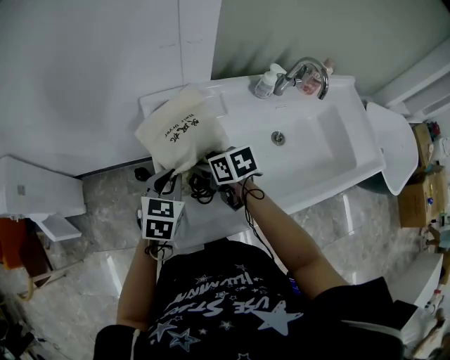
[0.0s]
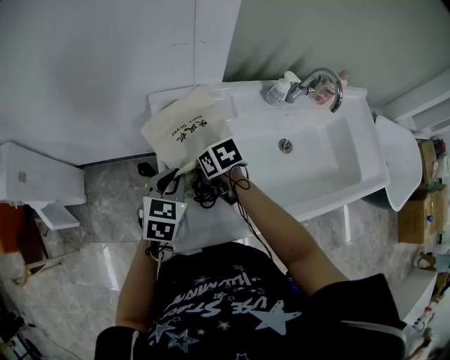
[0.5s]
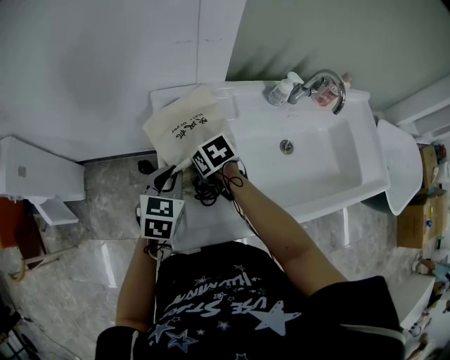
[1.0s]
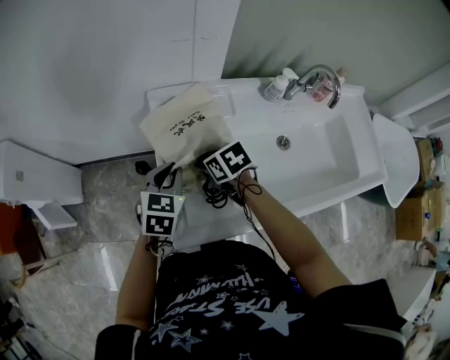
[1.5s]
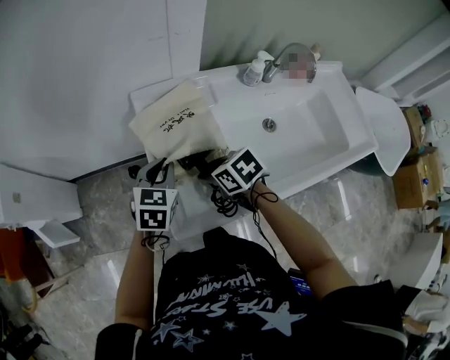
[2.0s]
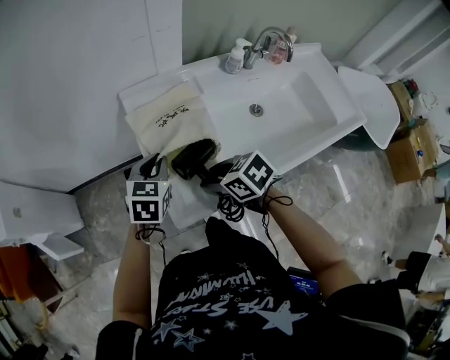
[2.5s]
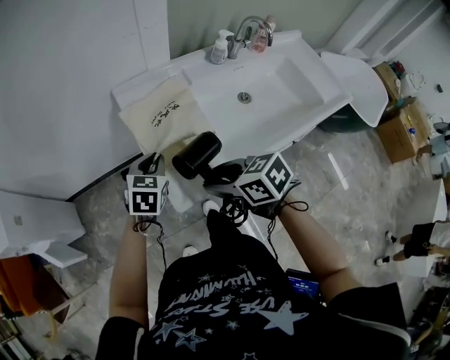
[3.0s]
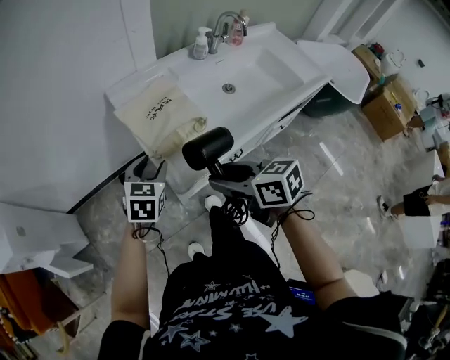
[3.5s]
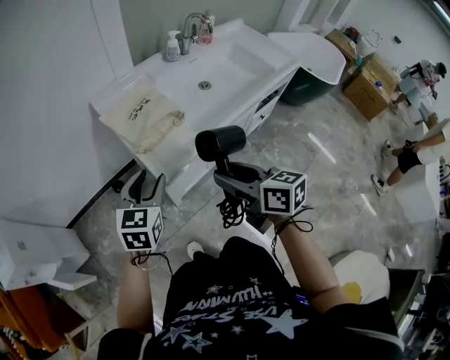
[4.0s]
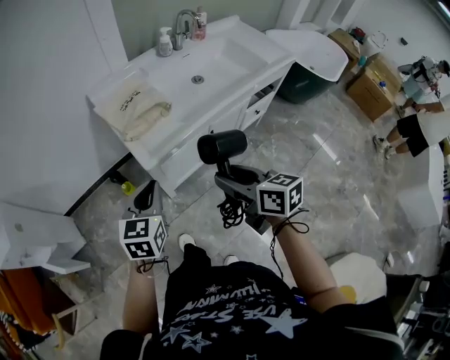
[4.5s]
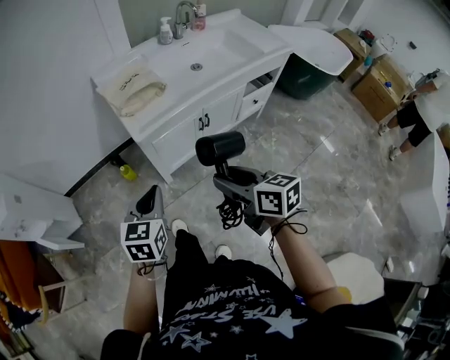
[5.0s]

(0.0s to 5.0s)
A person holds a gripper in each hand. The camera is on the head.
0.0s - 2.5s: The right gripper shifts about 15 cm backward.
2.5s - 5.0s: Both grippers are carried about 40 cm. The right gripper changes its angle by some 50 degrees; the left gripper opens, then closes again.

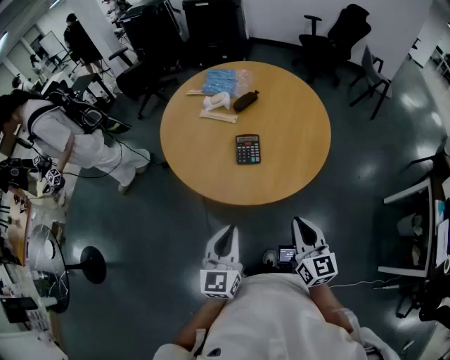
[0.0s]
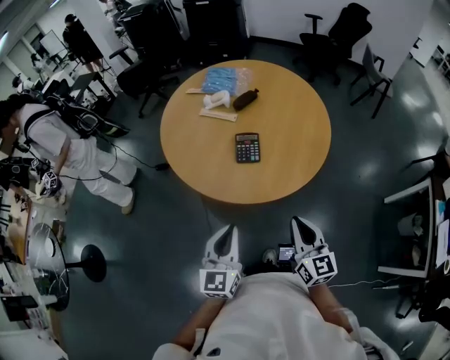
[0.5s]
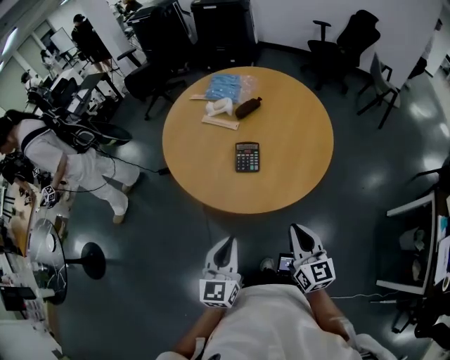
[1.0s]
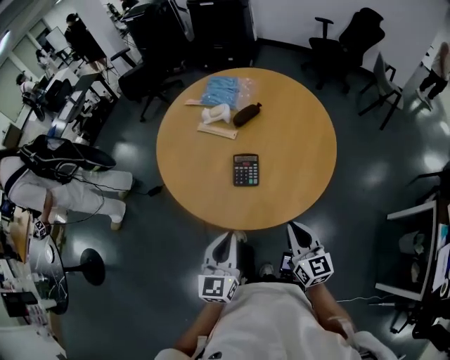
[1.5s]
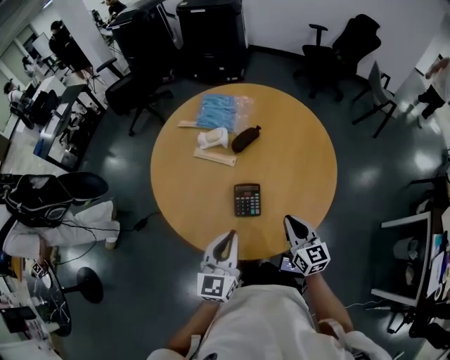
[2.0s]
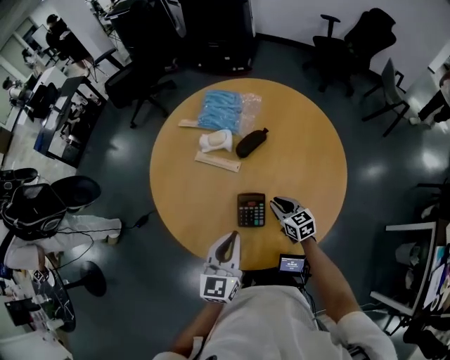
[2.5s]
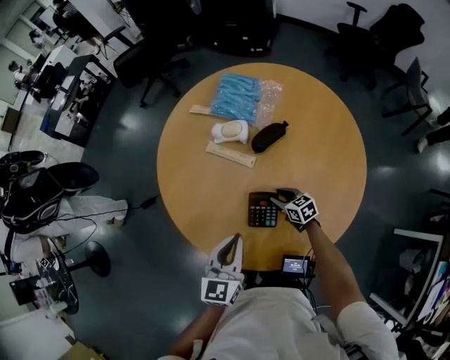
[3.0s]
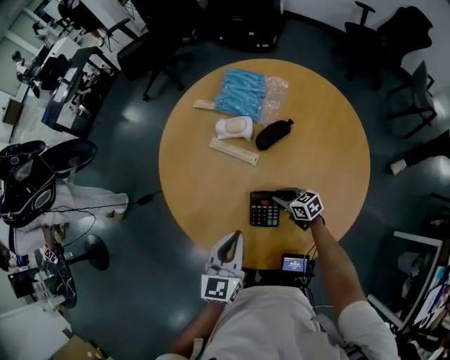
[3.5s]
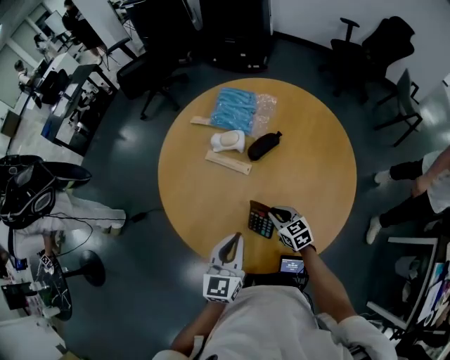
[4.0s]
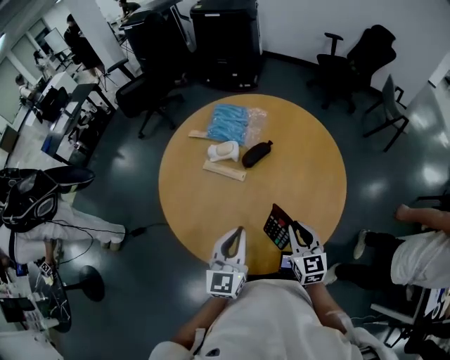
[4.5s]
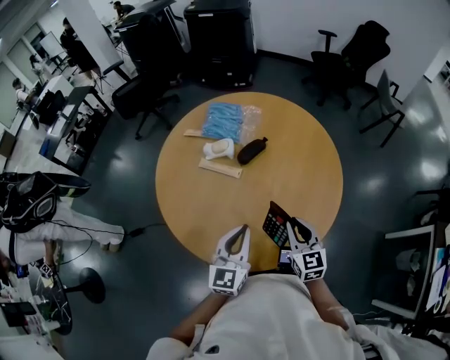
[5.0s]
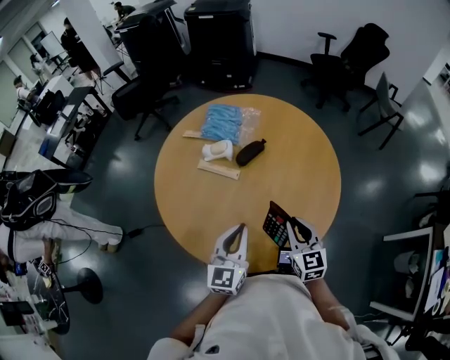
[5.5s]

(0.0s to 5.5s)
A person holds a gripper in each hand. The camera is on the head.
0.0s - 2.0s: Both grippers travel together forward, approximately 25 cm.
2.0s - 3.5s: The left gripper moves roughly 10 cm, while the right gripper goes some 25 cm downward, rotates about 50 degrees, and opens up.
3.5s - 5.5s: The left gripper shifts approximately 5 cm upward. Meanwhile the right gripper travels upward by roughly 25 cm, and changes its angle by roughly 50 degrees.

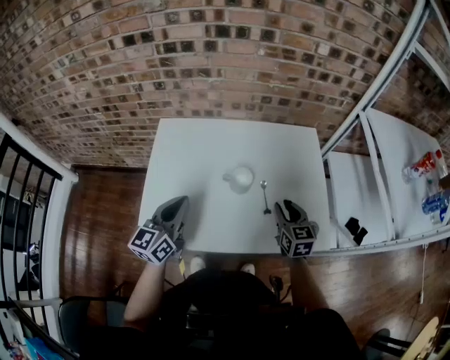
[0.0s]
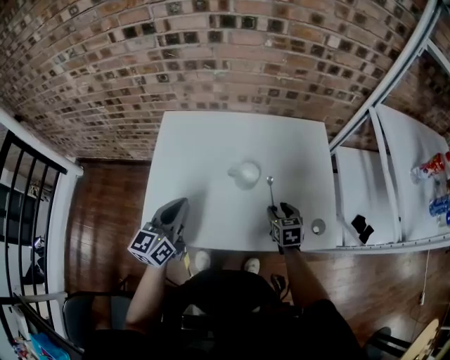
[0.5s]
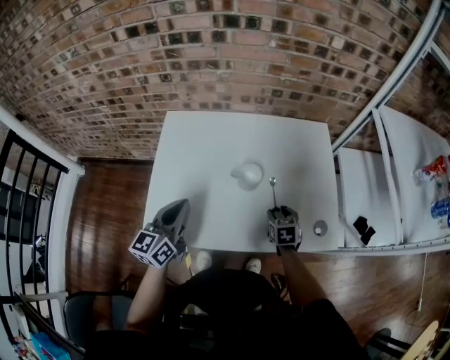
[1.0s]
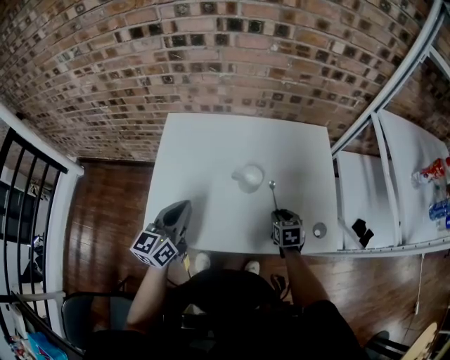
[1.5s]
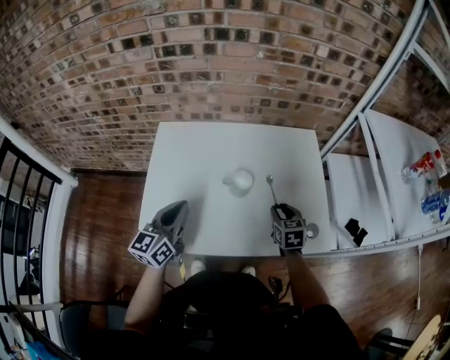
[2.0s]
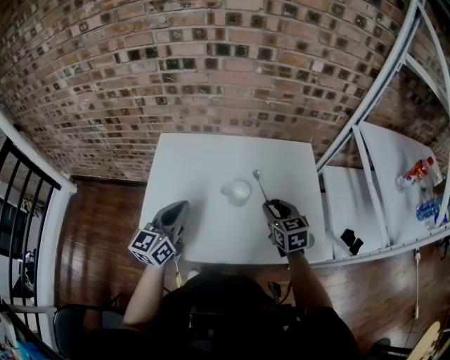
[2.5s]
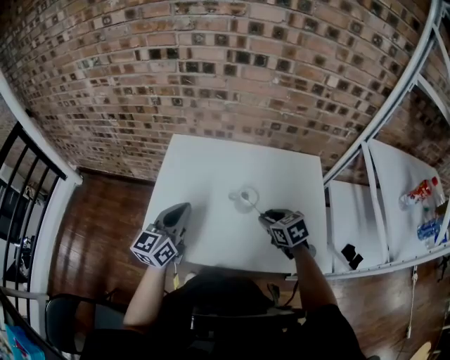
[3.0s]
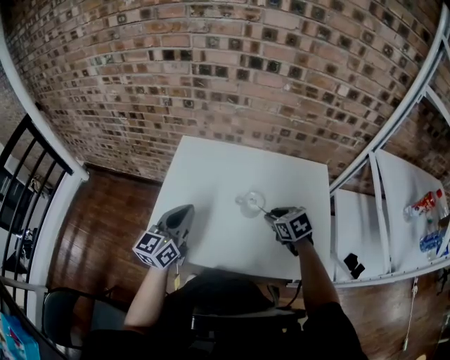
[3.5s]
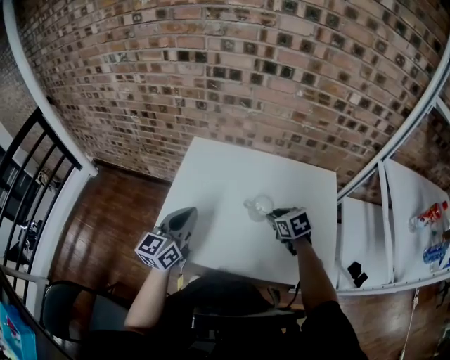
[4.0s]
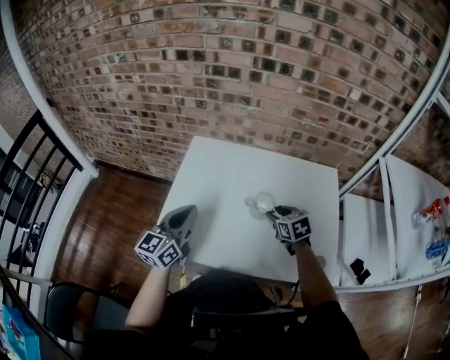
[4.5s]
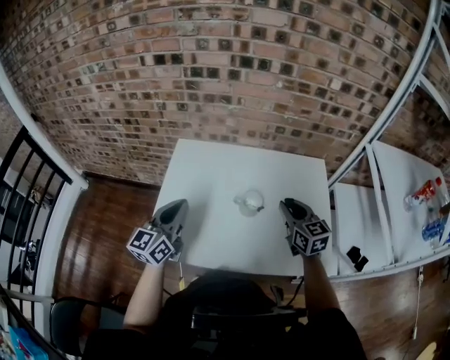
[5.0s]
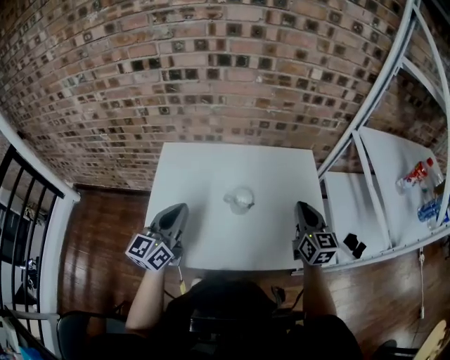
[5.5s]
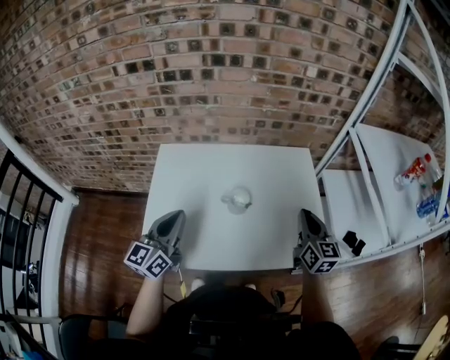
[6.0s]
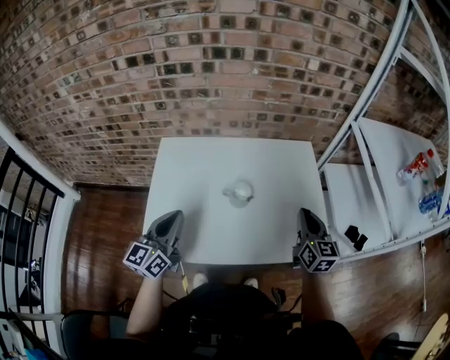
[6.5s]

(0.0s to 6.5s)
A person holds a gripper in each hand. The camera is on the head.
0.0s - 2.0s: The right gripper heads downward, covering approximately 5 cm.
2.0s - 4.5s: The right gripper travels to the left and forward by some 10 cm, and changes its angle by approximately 30 degrees, while the left gripper moves some 5 cm.
4.5s - 6.5s: The right gripper goes roughly 20 cm to the right, upward and backward, tilts its fingers approximately 40 degrees upward, and closes.

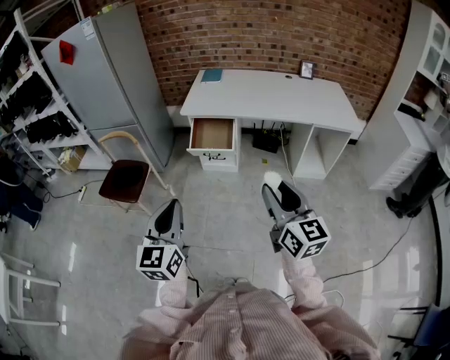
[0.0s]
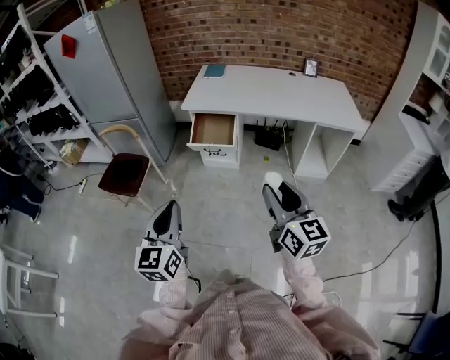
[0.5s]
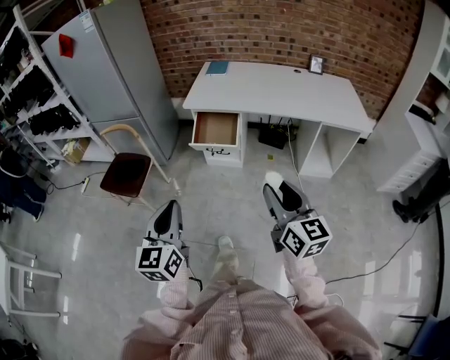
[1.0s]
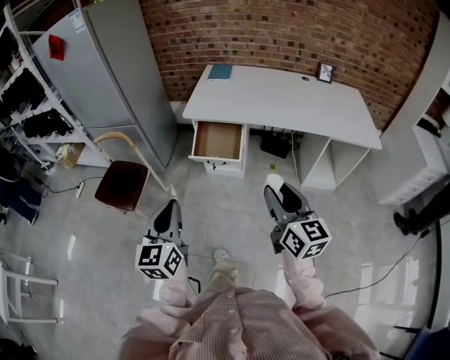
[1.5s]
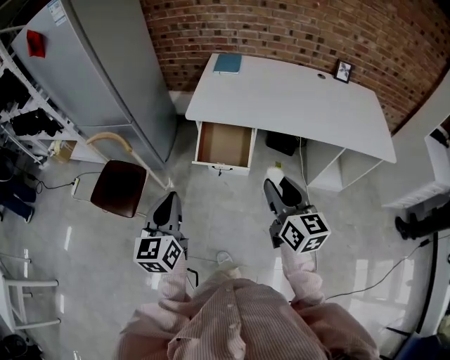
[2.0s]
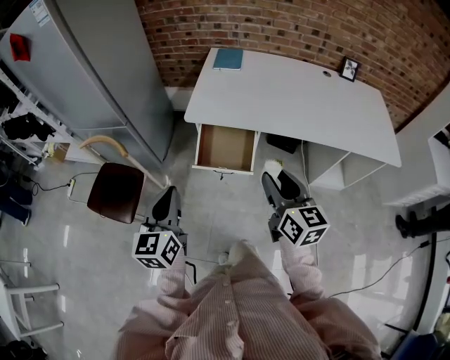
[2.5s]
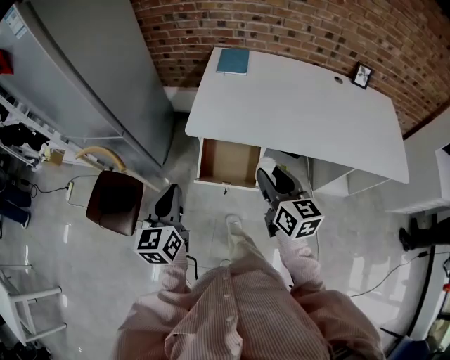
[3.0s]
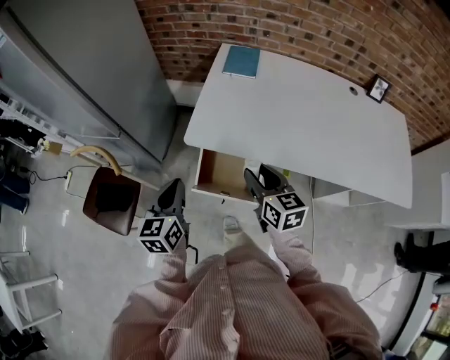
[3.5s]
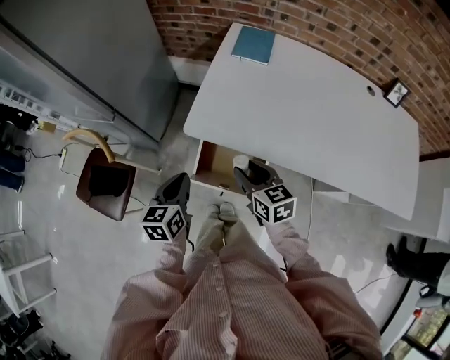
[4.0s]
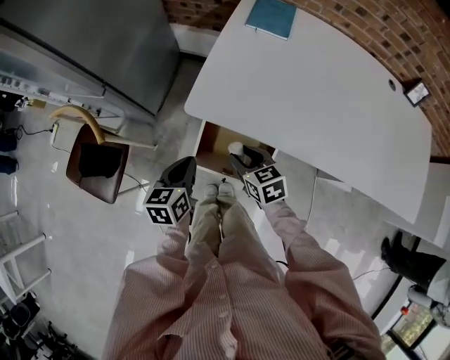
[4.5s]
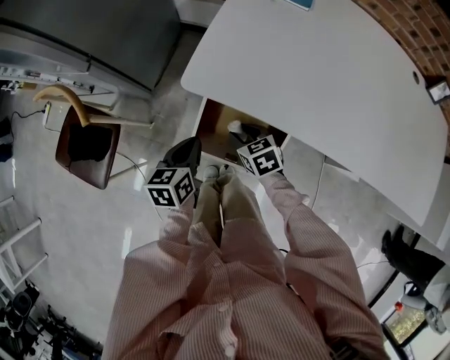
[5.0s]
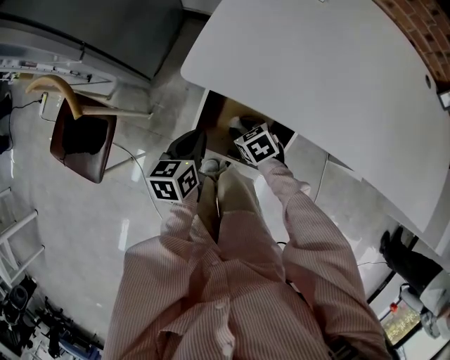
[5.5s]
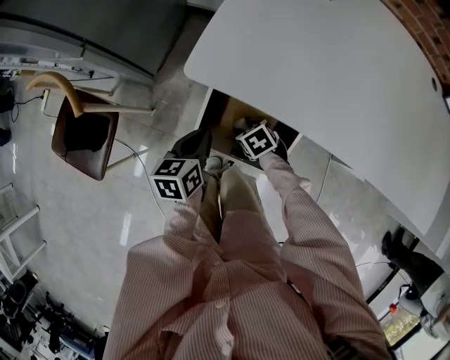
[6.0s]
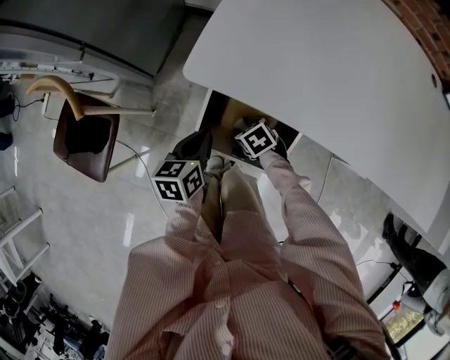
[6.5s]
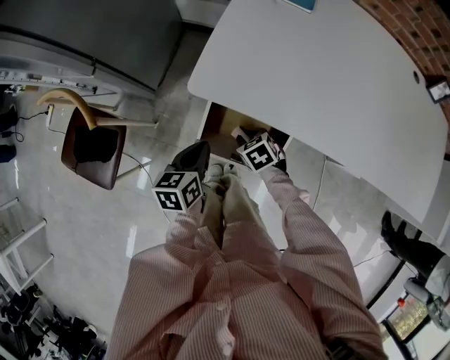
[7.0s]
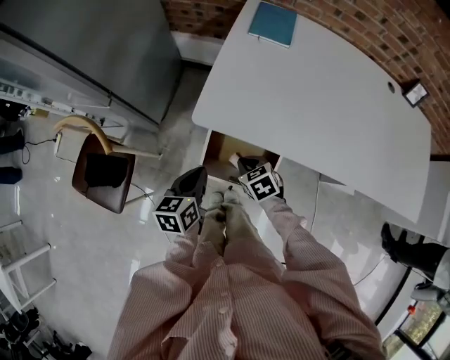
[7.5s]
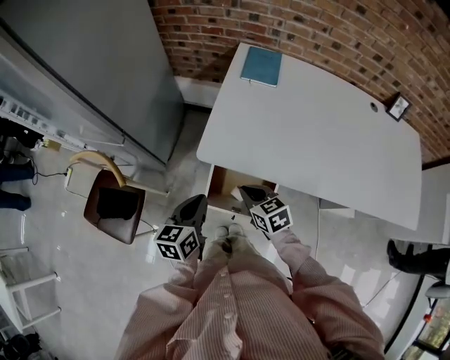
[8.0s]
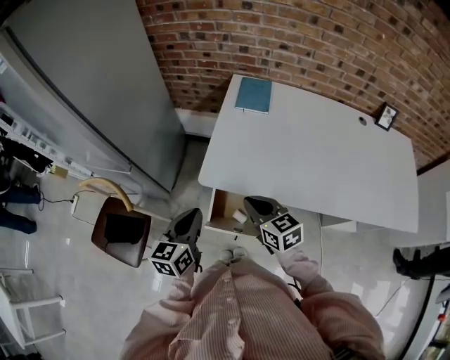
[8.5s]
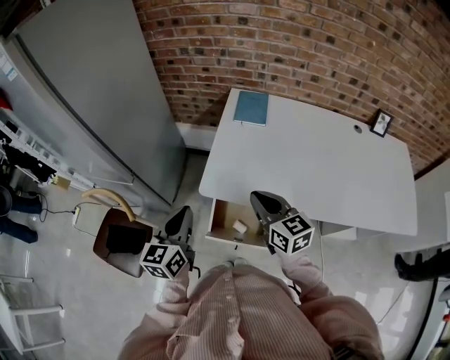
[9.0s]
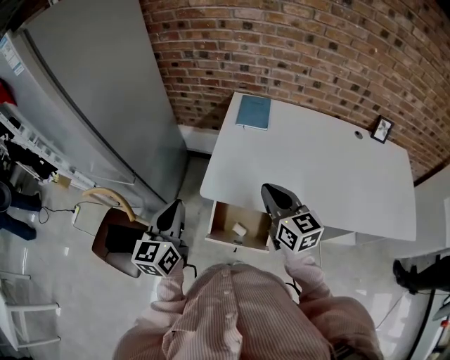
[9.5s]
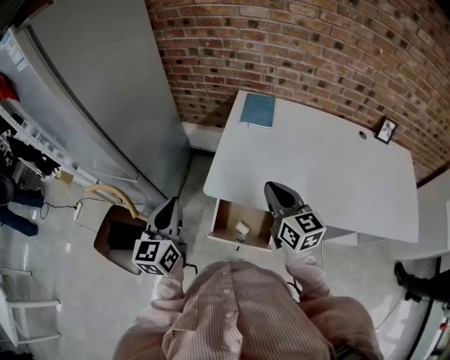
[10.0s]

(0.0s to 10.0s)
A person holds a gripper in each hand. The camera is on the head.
0.0s - 2.0s: Both grippers travel together forward, some 30 cm.
2.0s - 4.0s: Both grippers move forward and downward, about 35 cm. The left gripper turns by about 20 degrees. Meanwhile the right gripper swivels roughly 30 degrees.
4.0s - 6.0s: The left gripper travels downward by approximately 20 cm; the right gripper shifts about 35 cm downward, and tilts its fingers about 40 degrees downward.
6.0s - 8.0s: The two grippers go about 25 cm upward. The right gripper rotates roughly 30 degrees, and closes its fingers.
8.0s - 10.0s: The left gripper shifts about 15 cm upward and to the left, and changes its angle by approximately 30 degrees, while the right gripper moves upward, some 20 cm, and swivels some 30 degrees.
